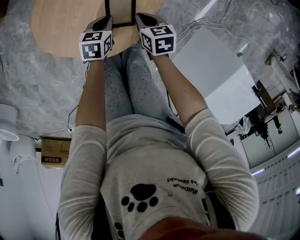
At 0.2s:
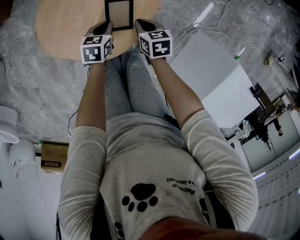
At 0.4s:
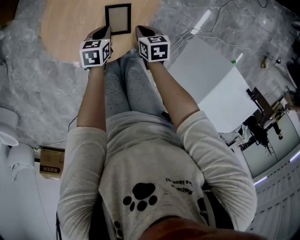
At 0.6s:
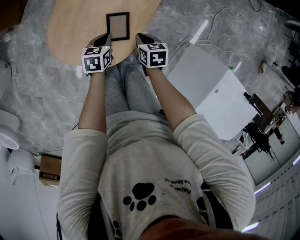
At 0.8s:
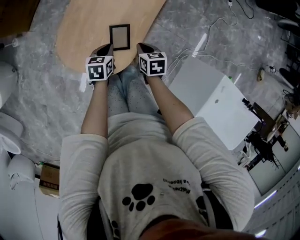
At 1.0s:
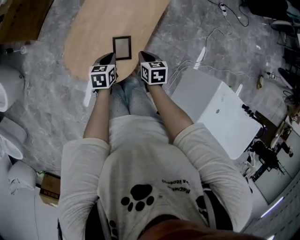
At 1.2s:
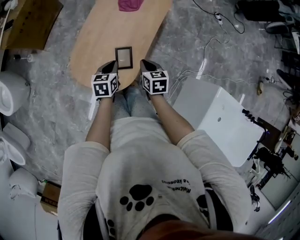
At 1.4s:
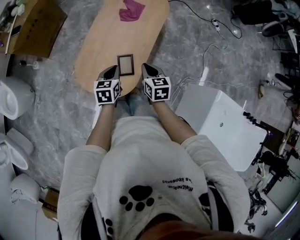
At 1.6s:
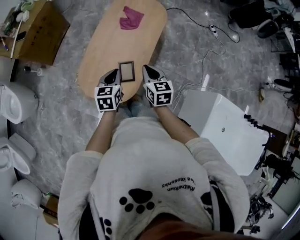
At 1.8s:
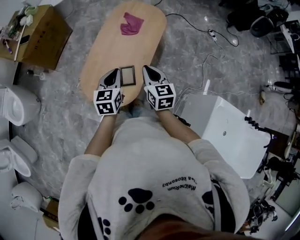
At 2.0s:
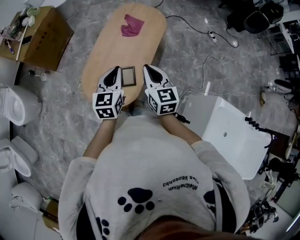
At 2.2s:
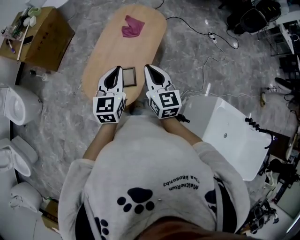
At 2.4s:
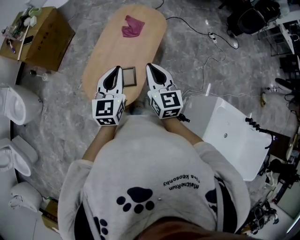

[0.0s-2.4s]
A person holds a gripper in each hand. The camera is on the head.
0.0s to 1.2s: The two grippers go about 20 cm upward.
1.2s to 2.4s: Both grippers travel together upward, some 25 cm. The left gripper tilts its fingers approximately 30 degrees upward, while the right gripper points its fingers approximately 30 degrees further upward.

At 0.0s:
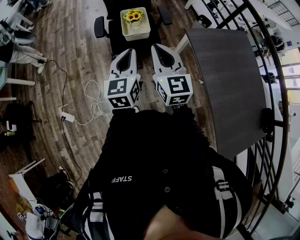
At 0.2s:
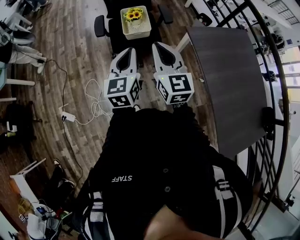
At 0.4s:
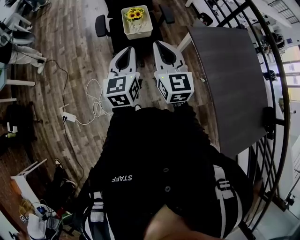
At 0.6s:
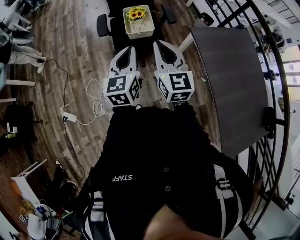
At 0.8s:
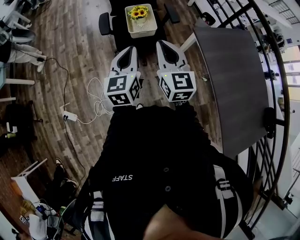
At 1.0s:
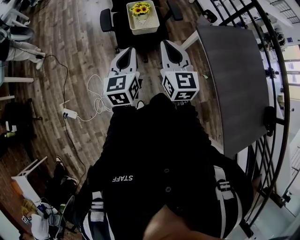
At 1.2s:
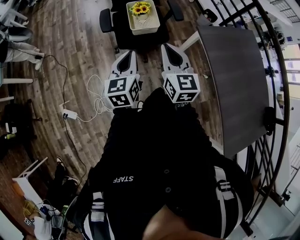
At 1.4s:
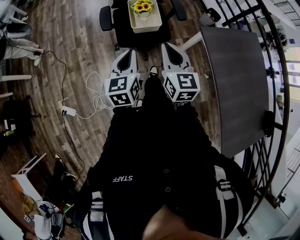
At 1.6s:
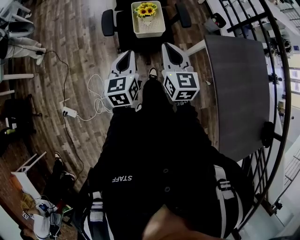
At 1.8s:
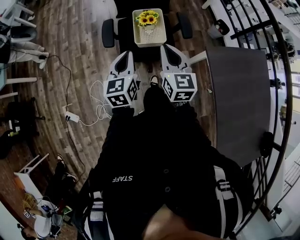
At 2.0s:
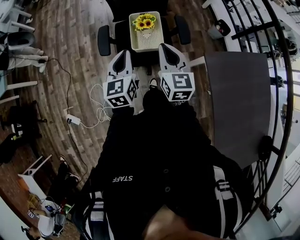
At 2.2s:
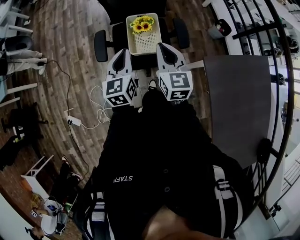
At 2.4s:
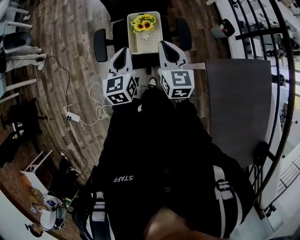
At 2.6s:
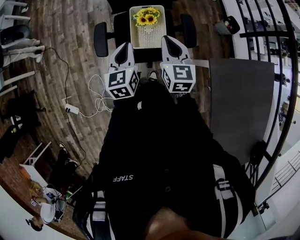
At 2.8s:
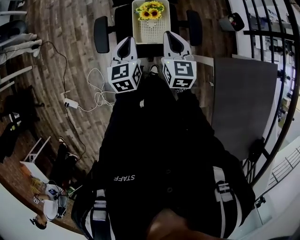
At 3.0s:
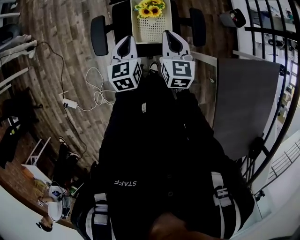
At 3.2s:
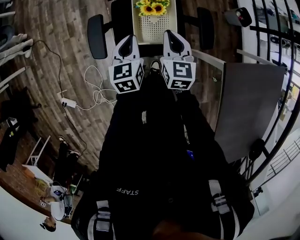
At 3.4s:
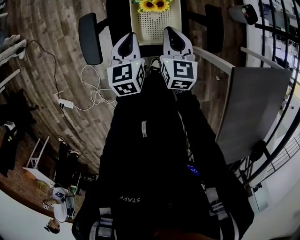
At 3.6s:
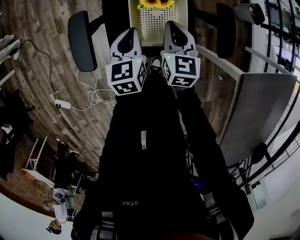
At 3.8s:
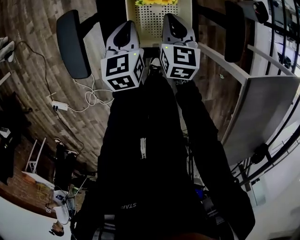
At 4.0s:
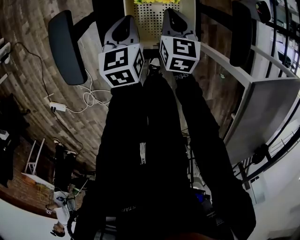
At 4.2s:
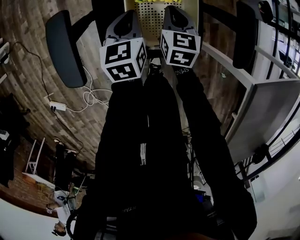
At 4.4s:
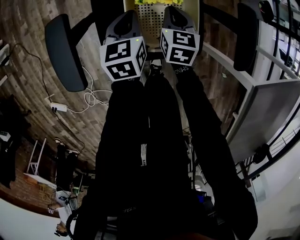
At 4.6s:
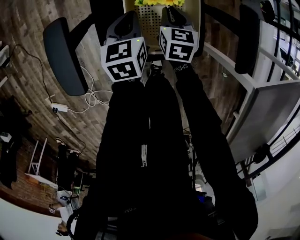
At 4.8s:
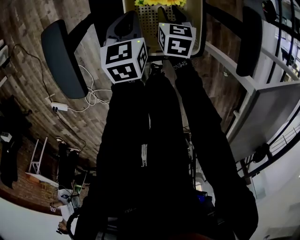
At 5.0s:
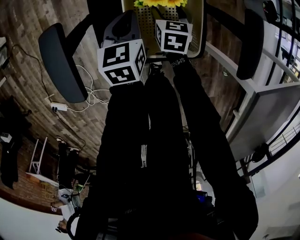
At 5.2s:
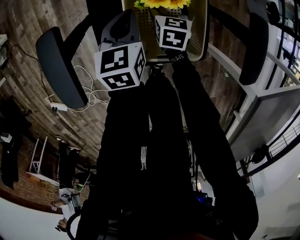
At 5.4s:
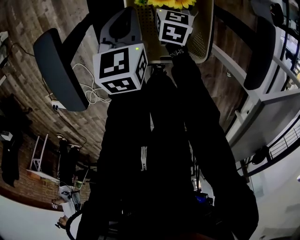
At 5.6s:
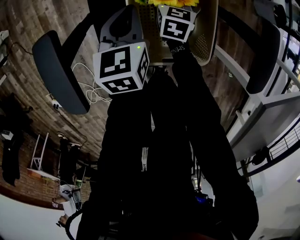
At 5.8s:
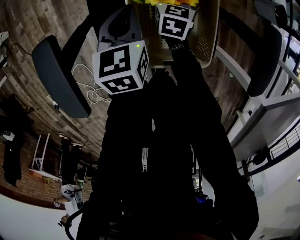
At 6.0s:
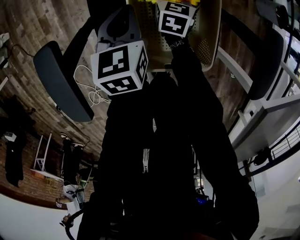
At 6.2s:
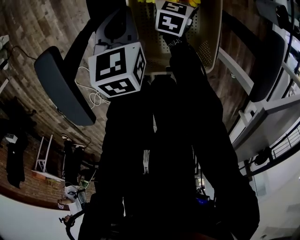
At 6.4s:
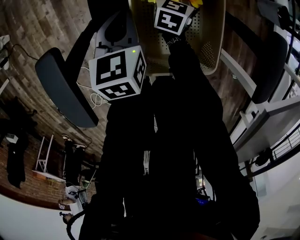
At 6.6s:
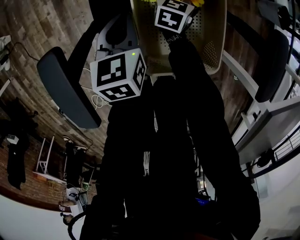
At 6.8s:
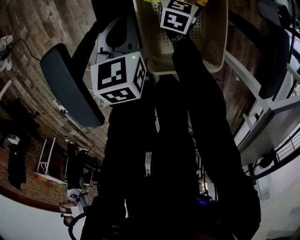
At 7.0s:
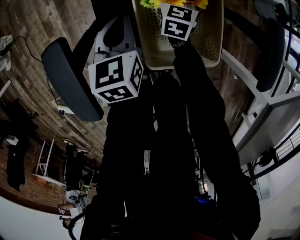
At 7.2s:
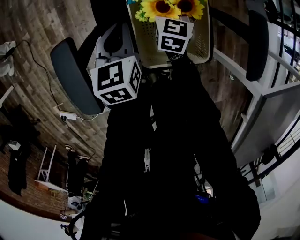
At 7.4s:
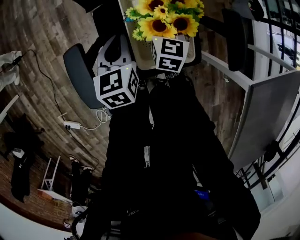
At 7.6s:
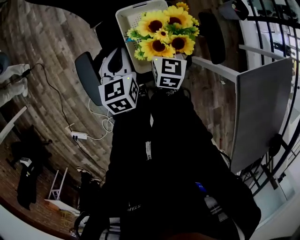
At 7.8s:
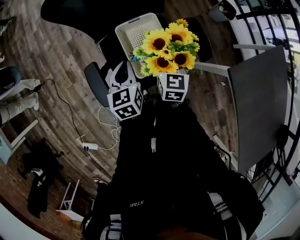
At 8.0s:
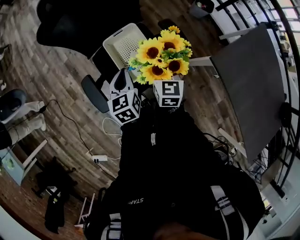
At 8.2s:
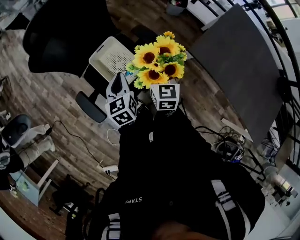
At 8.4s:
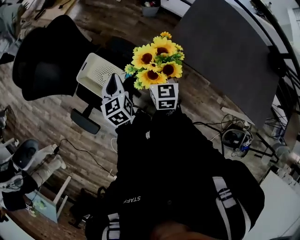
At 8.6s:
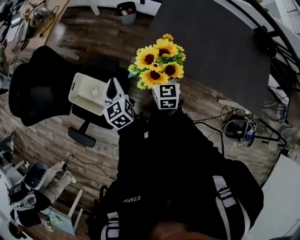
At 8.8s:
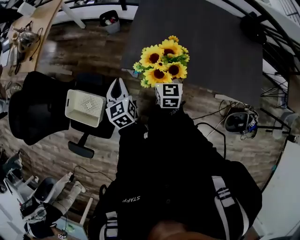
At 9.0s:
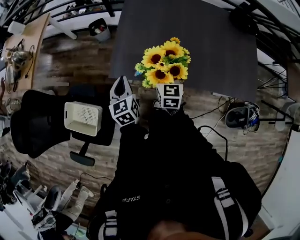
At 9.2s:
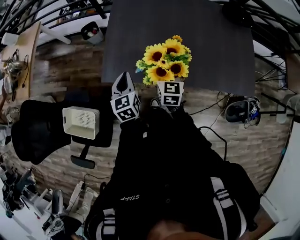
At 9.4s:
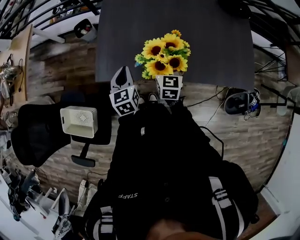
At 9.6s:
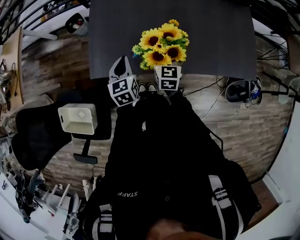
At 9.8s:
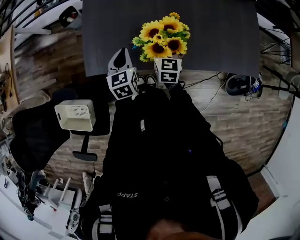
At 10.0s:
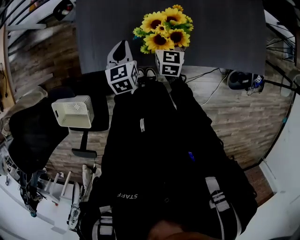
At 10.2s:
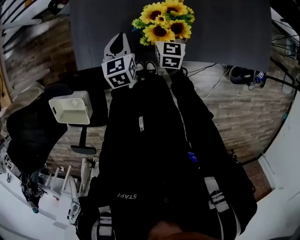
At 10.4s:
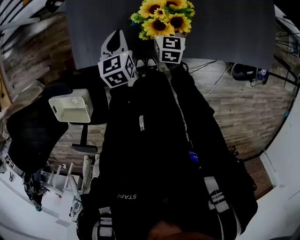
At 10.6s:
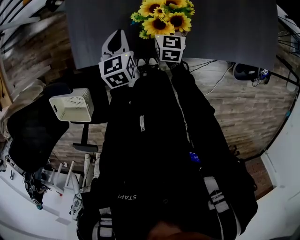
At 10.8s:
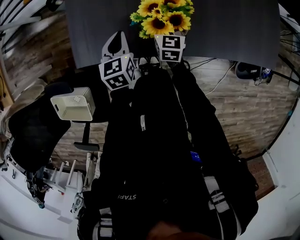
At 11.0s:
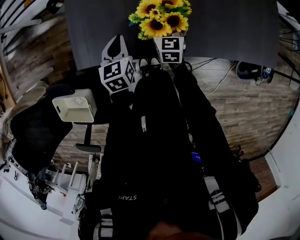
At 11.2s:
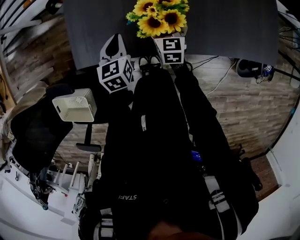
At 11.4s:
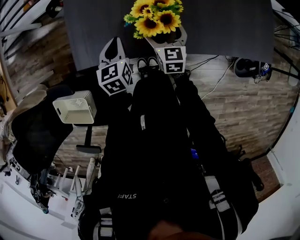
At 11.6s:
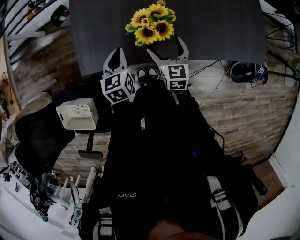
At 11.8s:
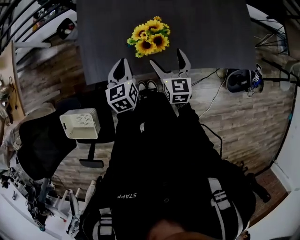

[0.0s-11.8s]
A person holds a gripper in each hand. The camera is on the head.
0.0s to 1.4s: The left gripper travels to the left, downward and forward by some 15 cm, while the right gripper travels forward, downward and to the left by roughly 15 cm.
1.4s to 3.0s: Both grippers travel together forward and downward, roughly 40 cm.
3.0s to 4.4s: The two grippers go roughly 35 cm downward.
4.4s to 6.0s: The left gripper is displaced forward by approximately 5 cm, while the right gripper is displaced downward and forward by some 15 cm, and opens up.
6.0s to 7.4s: The left gripper is displaced upward by roughly 10 cm. Meanwhile the right gripper heads upward, covering roughly 20 cm.
7.4s to 8.8s: The two grippers travel together, about 60 cm. The right gripper swivels about 50 degrees, while the left gripper changes its angle by about 50 degrees.
8.8s to 10.4s: The right gripper goes some 35 cm downward, to the right and forward, and swivels approximately 20 degrees; the left gripper heads to the right, forward and downward, covering roughly 35 cm, and changes its angle by roughly 30 degrees.
10.4s to 11.8s: The left gripper travels upward by about 10 cm. The right gripper shifts some 20 cm upward and backward.

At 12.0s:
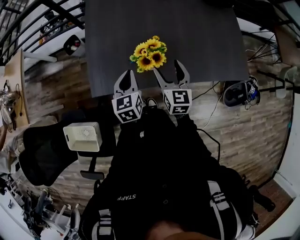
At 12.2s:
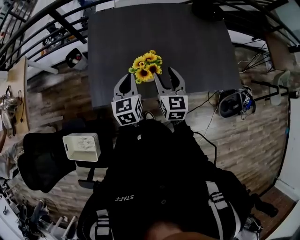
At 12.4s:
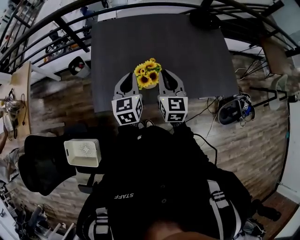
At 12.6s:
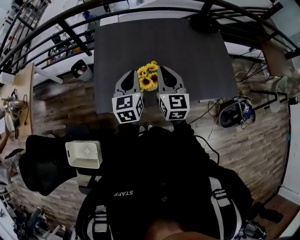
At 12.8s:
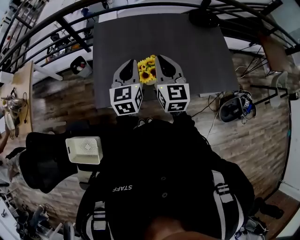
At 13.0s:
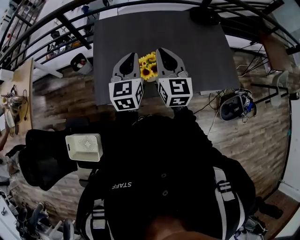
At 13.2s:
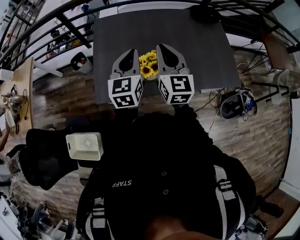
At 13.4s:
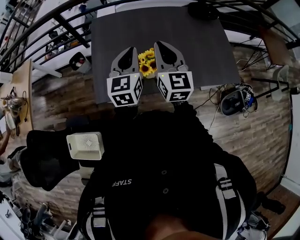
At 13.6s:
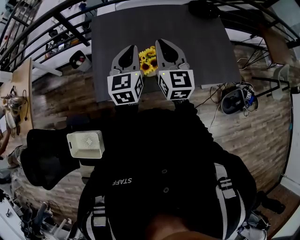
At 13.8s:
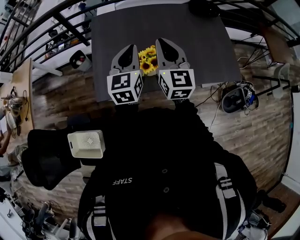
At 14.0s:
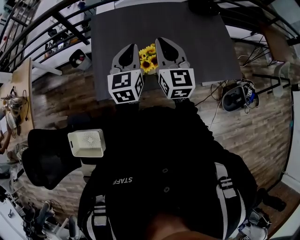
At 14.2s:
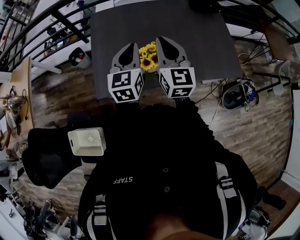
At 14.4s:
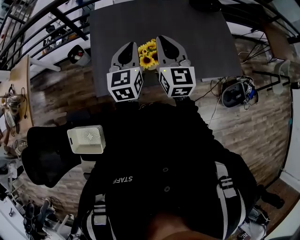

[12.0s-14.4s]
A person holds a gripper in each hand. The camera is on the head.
12.0s to 13.2s: The grippers both shift upward by roughly 20 cm. The left gripper swivels approximately 20 degrees. Meanwhile the right gripper closes up.
13.2s to 14.4s: The grippers make only small movements.

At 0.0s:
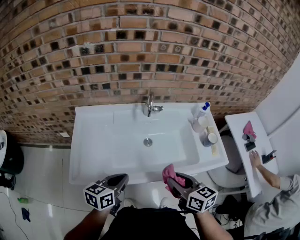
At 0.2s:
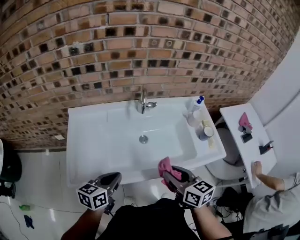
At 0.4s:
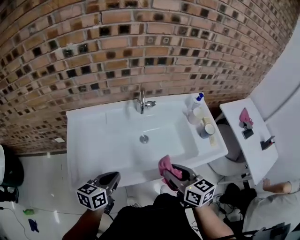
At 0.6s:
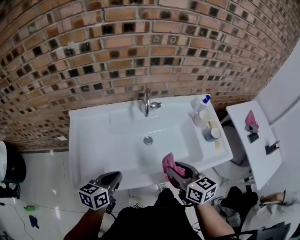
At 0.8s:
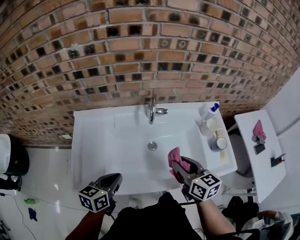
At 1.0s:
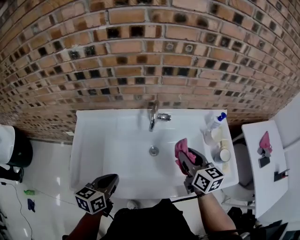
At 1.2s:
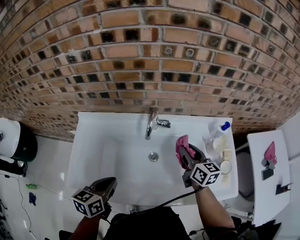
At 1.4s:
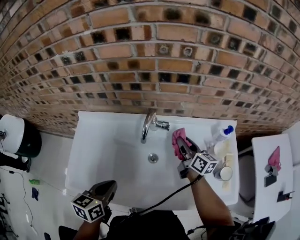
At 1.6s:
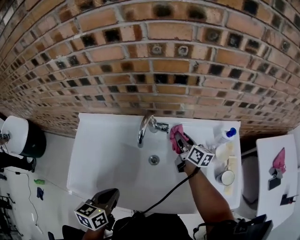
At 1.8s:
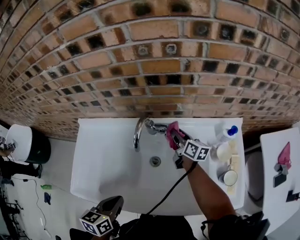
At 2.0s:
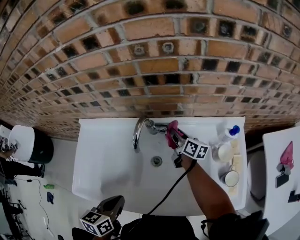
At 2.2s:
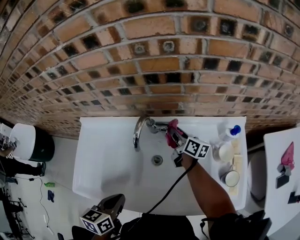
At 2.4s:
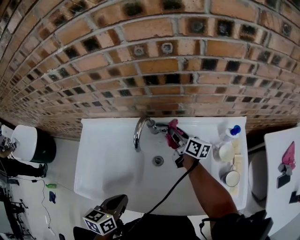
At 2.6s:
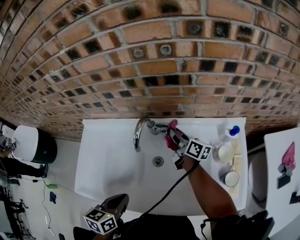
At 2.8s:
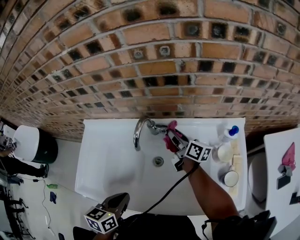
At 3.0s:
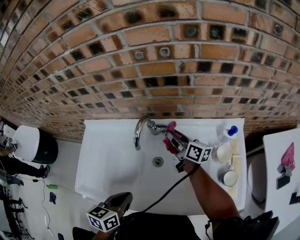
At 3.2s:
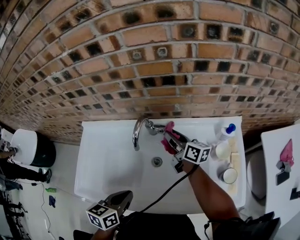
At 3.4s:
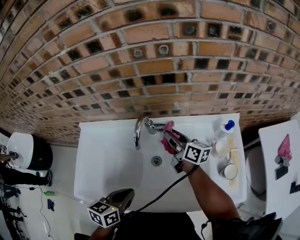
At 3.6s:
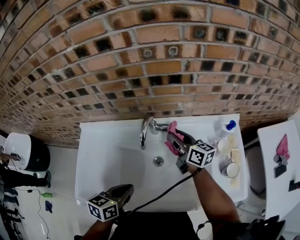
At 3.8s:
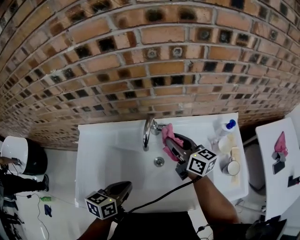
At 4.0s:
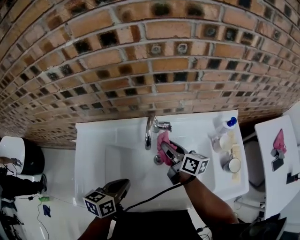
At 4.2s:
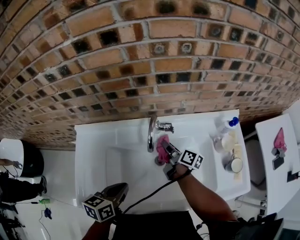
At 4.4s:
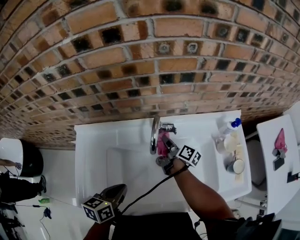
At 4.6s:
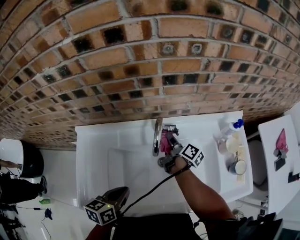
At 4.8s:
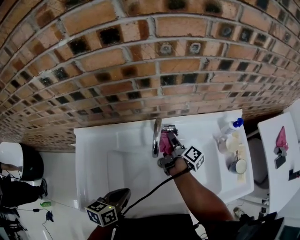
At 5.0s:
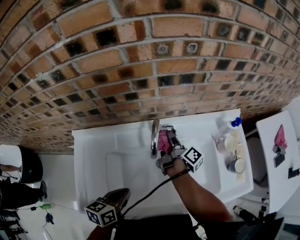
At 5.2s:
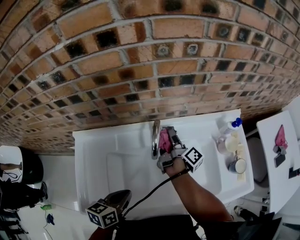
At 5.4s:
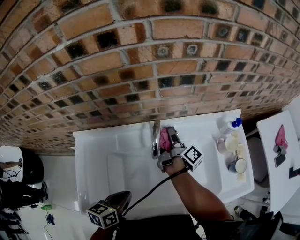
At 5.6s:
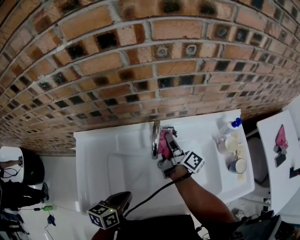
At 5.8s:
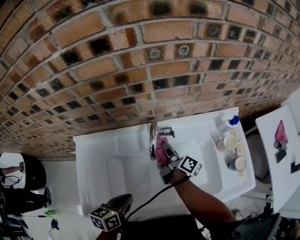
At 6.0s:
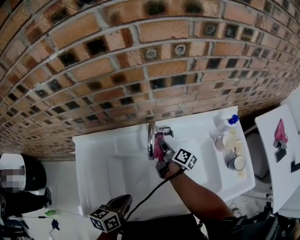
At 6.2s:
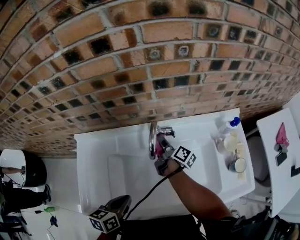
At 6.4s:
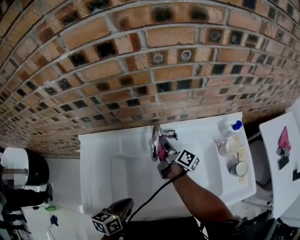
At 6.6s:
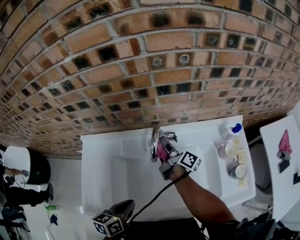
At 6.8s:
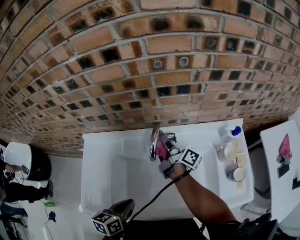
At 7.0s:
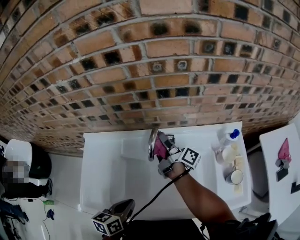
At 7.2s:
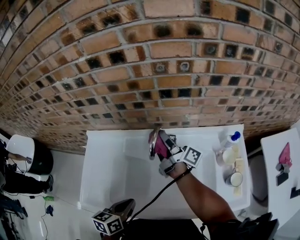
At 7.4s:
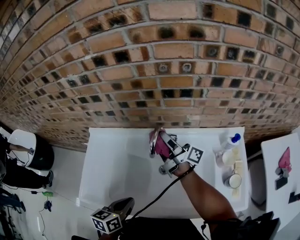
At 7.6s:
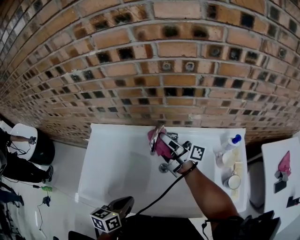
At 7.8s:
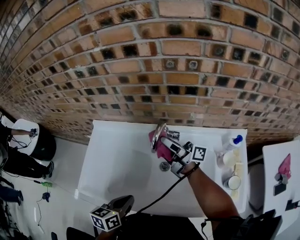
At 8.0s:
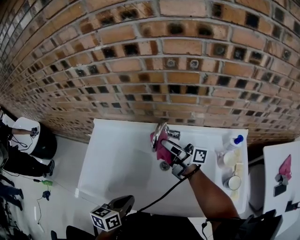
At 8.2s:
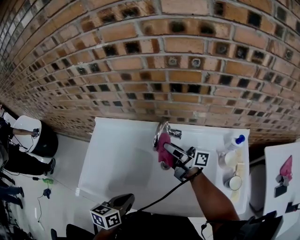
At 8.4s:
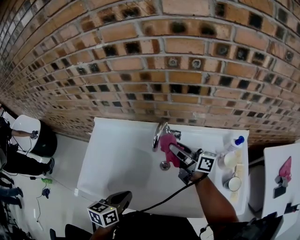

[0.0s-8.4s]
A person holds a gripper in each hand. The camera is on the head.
0.0s to 1.4s: The left gripper moves forward, about 10 cm, and swivels approximately 20 degrees, while the right gripper travels forward by about 40 cm, and swivels some 20 degrees.
1.4s to 2.8s: The left gripper travels to the right by some 5 cm. Meanwhile the right gripper is displaced forward by about 5 cm, and swivels roughly 20 degrees.
2.8s to 4.2s: The left gripper shifts some 10 cm to the left and forward, while the right gripper heads downward and to the left, covering some 10 cm, and changes its angle by about 20 degrees.
4.2s to 5.6s: The right gripper travels upward by roughly 10 cm, and turns by some 30 degrees.
5.6s to 7.0s: The right gripper goes downward and returns, roughly 10 cm each way; the left gripper shifts by about 5 cm.
7.0s to 8.4s: The right gripper travels backward by roughly 10 cm, and changes its angle by roughly 40 degrees.
